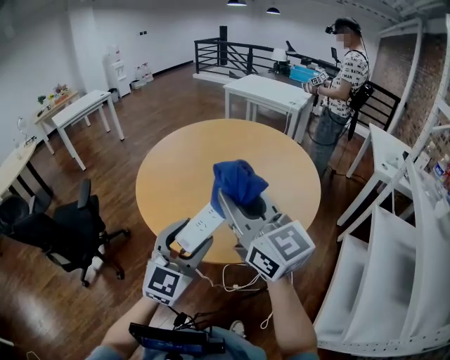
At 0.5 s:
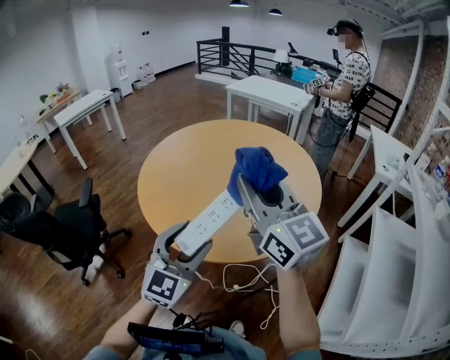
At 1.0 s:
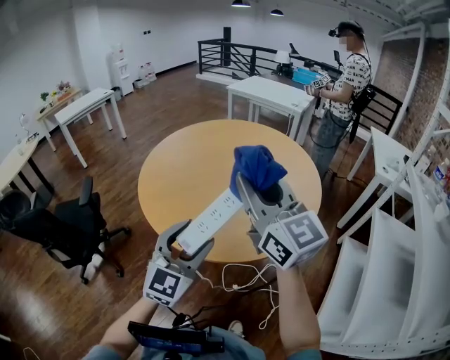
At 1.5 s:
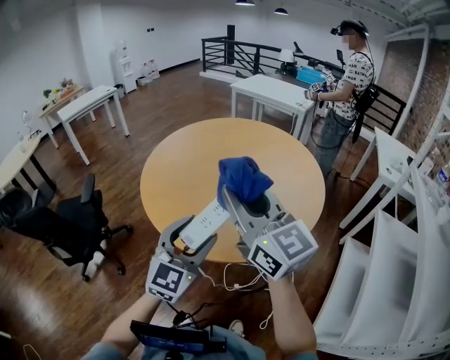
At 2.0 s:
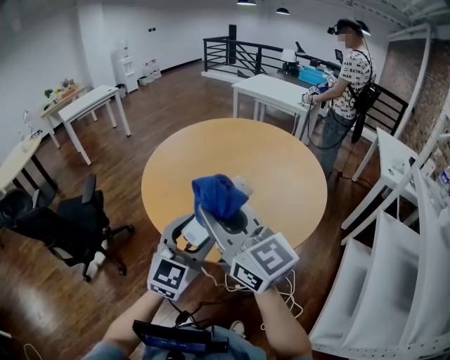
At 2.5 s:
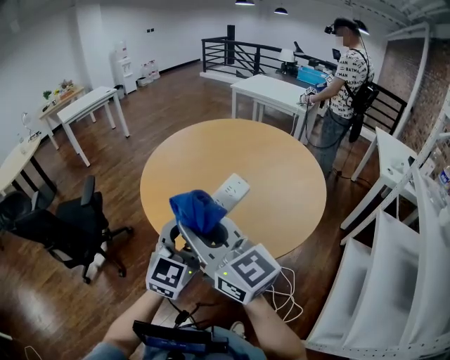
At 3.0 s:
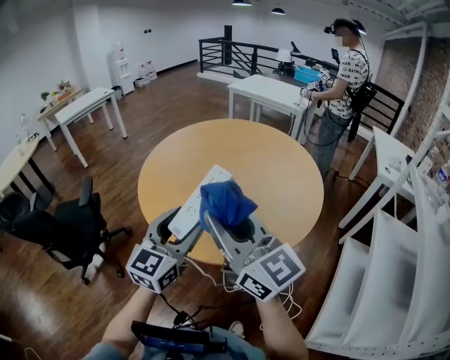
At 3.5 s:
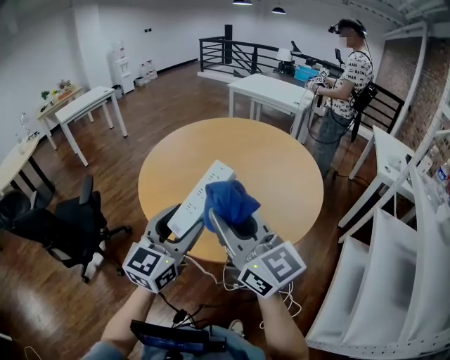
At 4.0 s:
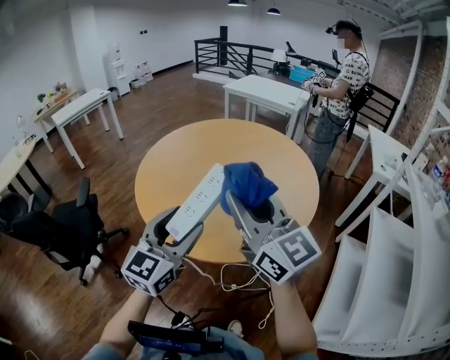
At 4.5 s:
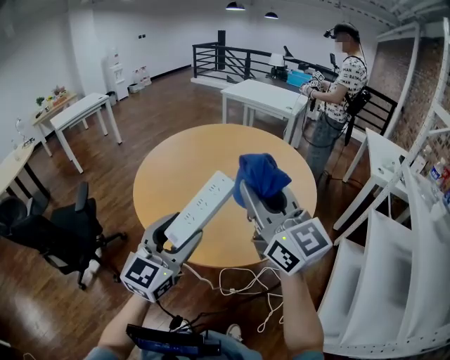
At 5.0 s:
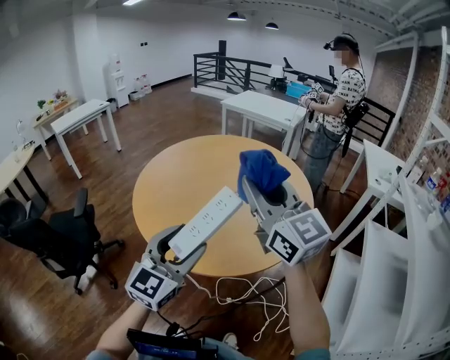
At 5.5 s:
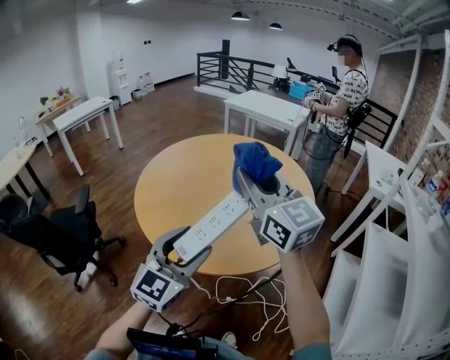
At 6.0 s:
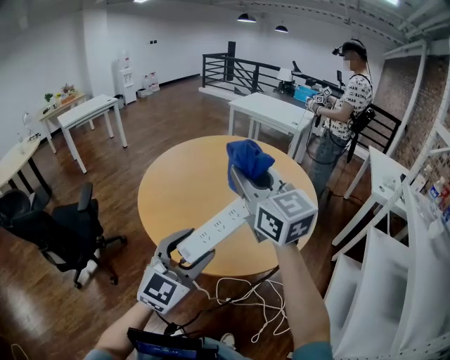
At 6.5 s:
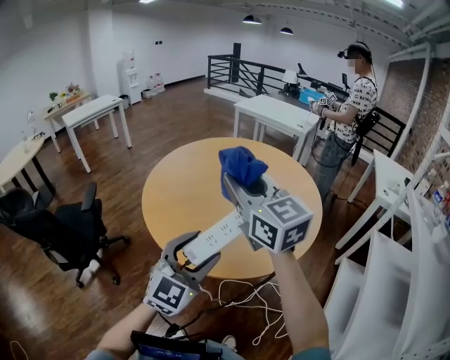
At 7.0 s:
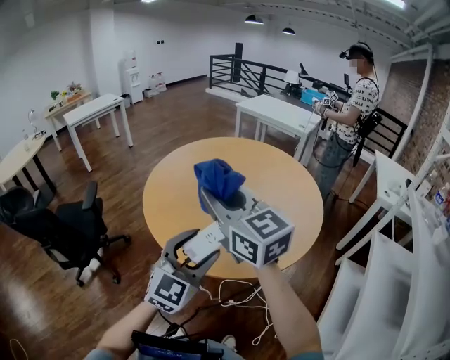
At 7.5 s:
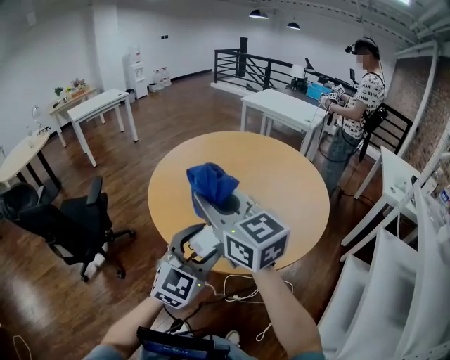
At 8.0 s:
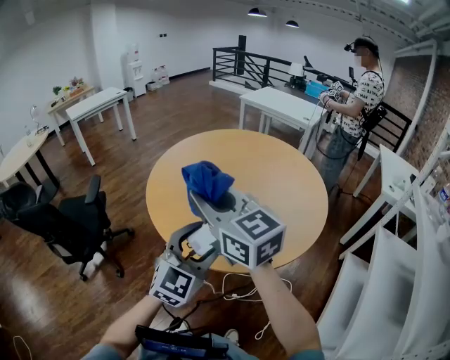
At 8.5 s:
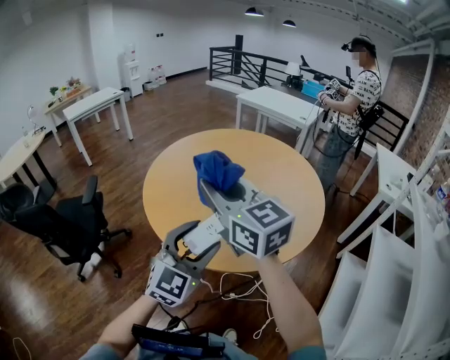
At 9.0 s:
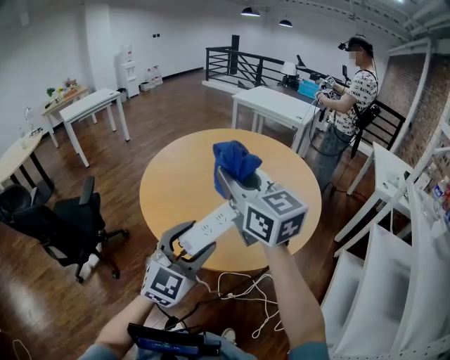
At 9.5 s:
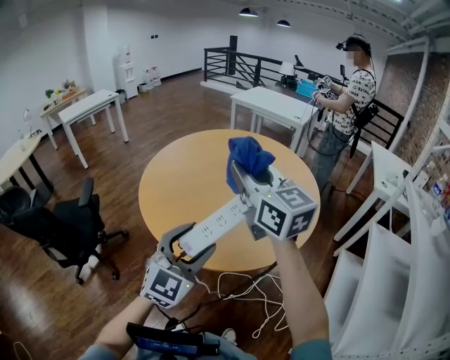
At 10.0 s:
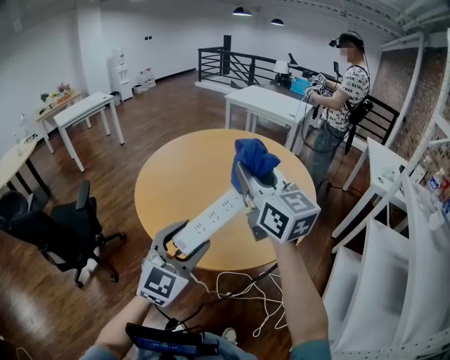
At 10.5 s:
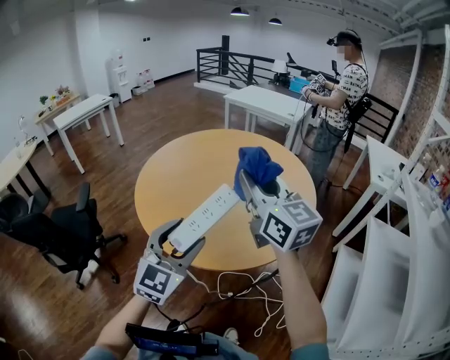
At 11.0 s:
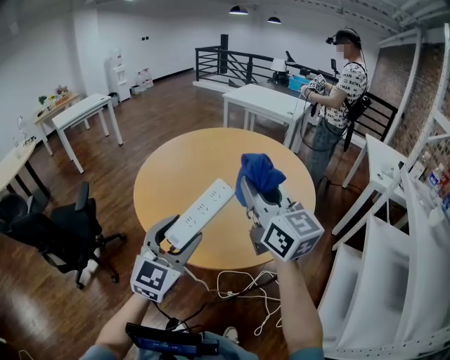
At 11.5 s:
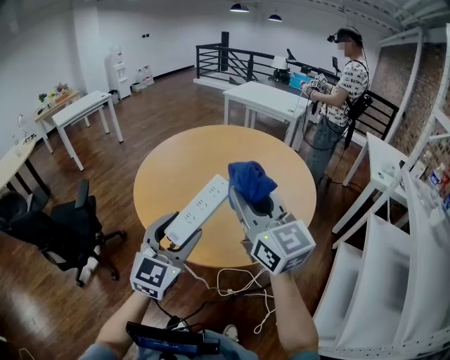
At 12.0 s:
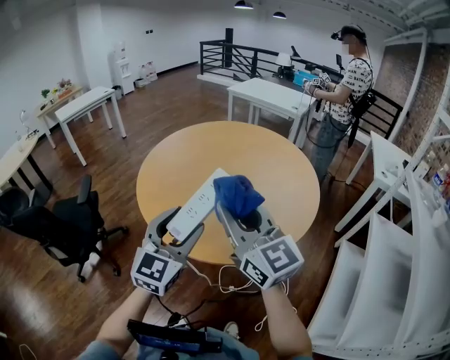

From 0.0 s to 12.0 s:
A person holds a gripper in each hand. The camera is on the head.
From 0.0 s to 2.0 s: The right gripper is displaced to the left by roughly 5 cm.
From 2.0 s to 4.0 s: The right gripper shifts about 5 cm to the right.
From 4.0 s to 6.0 s: The right gripper travels forward by some 10 cm.
From 6.0 s to 8.0 s: The right gripper goes approximately 10 cm to the left.
From 8.0 s to 10.0 s: The right gripper is displaced to the right by roughly 15 cm.
From 10.0 s to 12.0 s: The right gripper heads backward and downward, covering about 10 cm.

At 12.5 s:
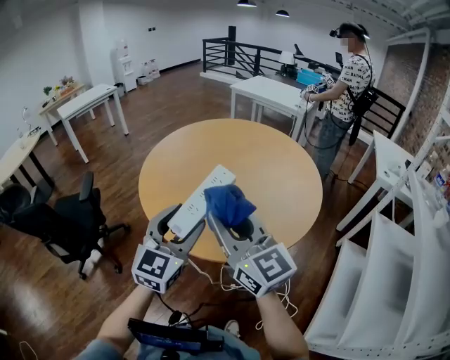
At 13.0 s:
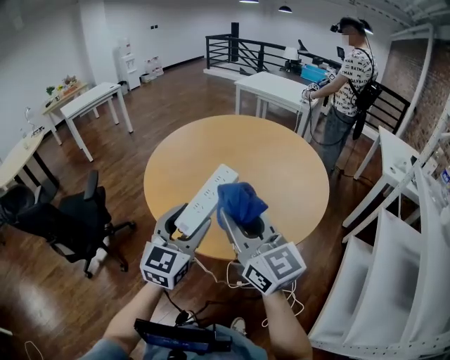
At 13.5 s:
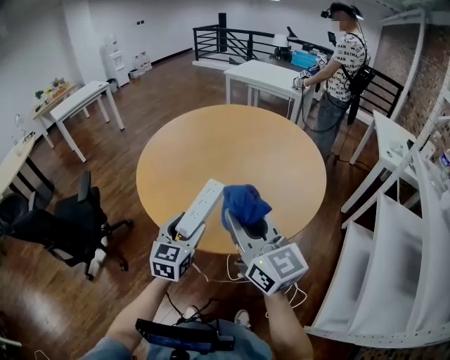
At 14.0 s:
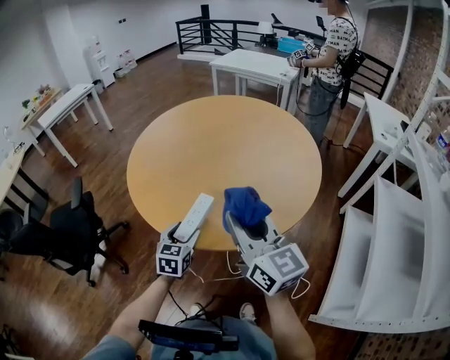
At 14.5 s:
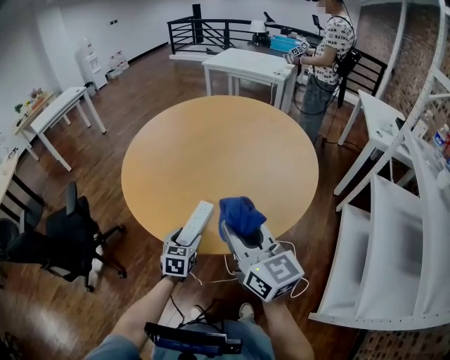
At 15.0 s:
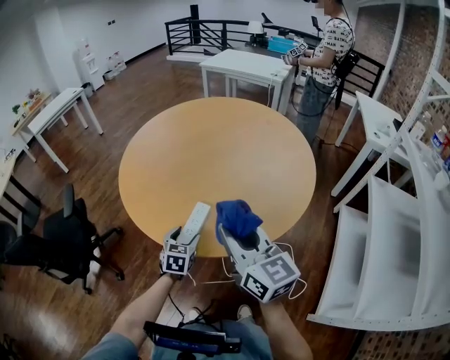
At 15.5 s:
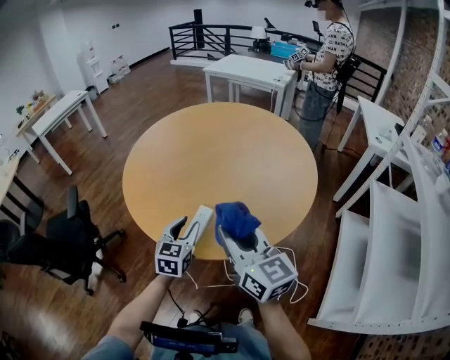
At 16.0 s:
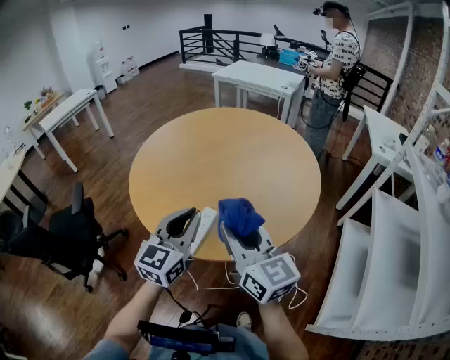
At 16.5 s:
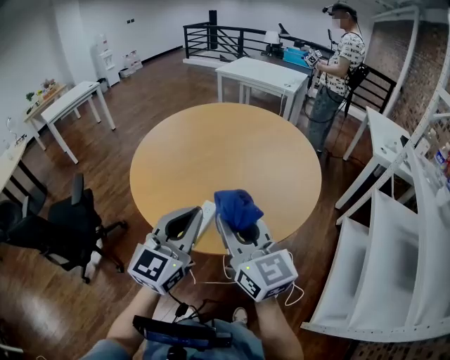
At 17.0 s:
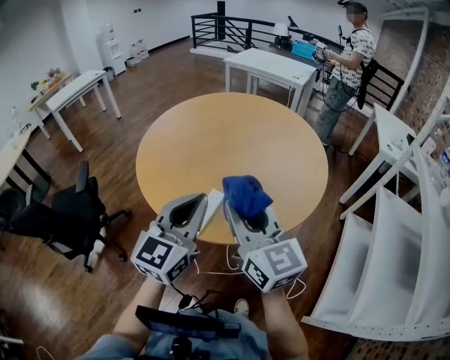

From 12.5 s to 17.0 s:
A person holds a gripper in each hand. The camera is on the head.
From 12.5 s to 14.5 s: The left gripper moves downward, about 30 cm, and angles its fingers downward, by about 30 degrees; the right gripper heads downward, covering approximately 10 cm, and changes its angle by approximately 20 degrees.
From 14.5 s to 17.0 s: The left gripper moves upward, roughly 30 cm, angles its fingers upward, by some 40 degrees, and closes up; the right gripper goes approximately 5 cm upward.

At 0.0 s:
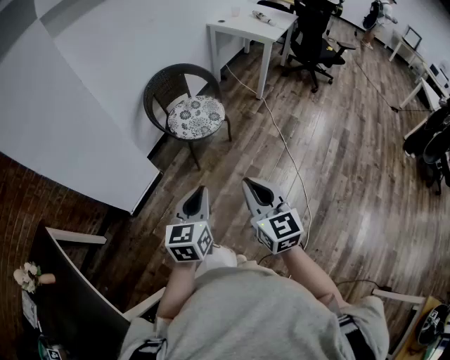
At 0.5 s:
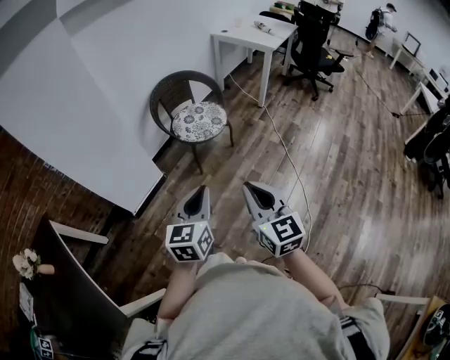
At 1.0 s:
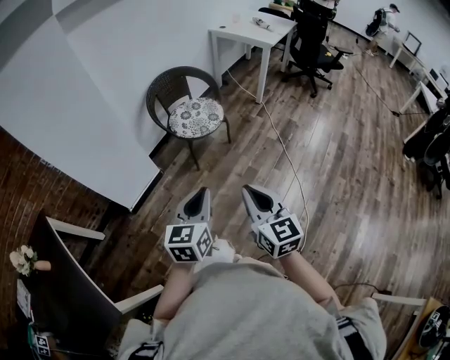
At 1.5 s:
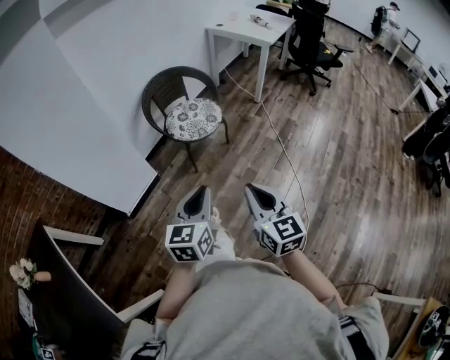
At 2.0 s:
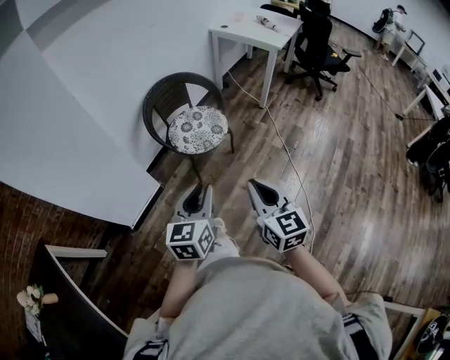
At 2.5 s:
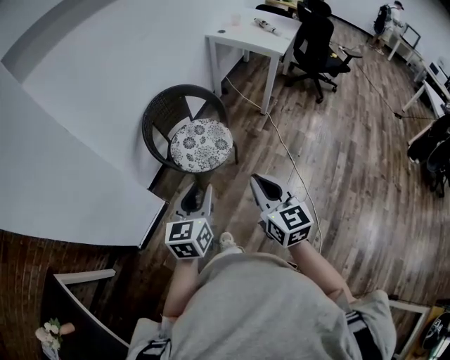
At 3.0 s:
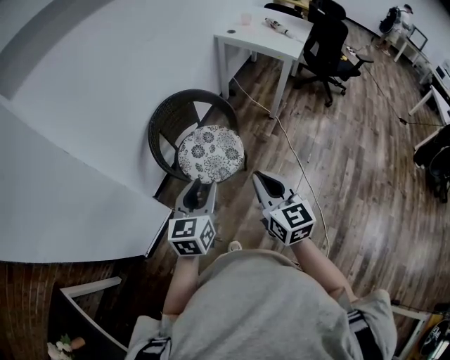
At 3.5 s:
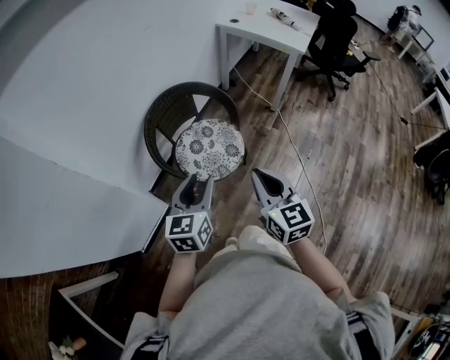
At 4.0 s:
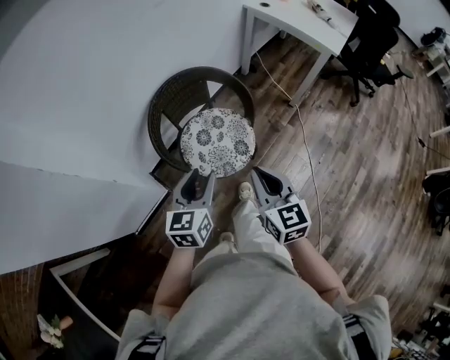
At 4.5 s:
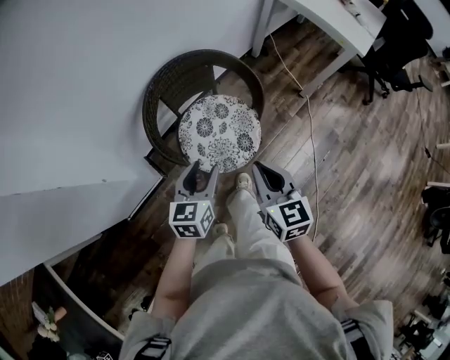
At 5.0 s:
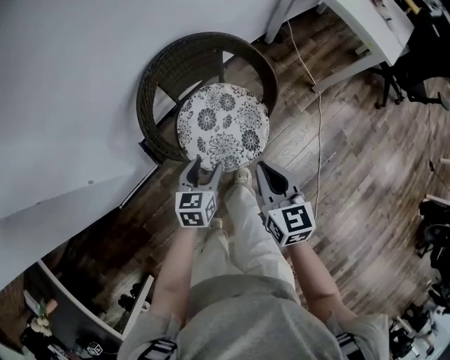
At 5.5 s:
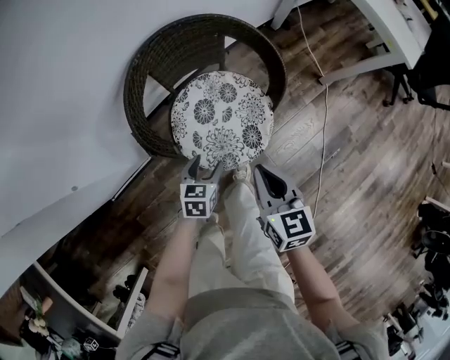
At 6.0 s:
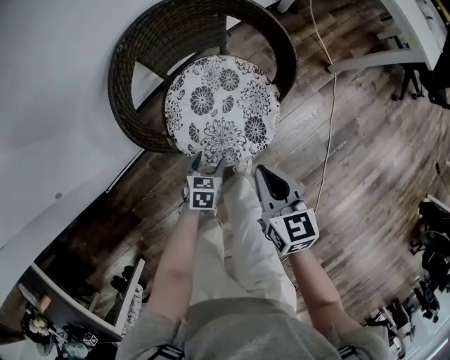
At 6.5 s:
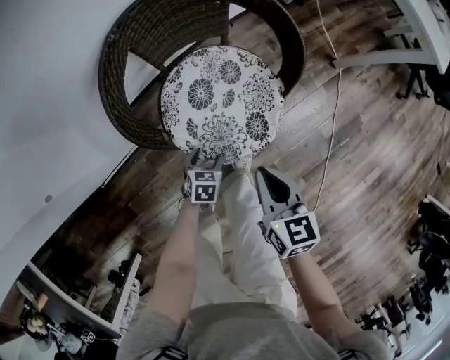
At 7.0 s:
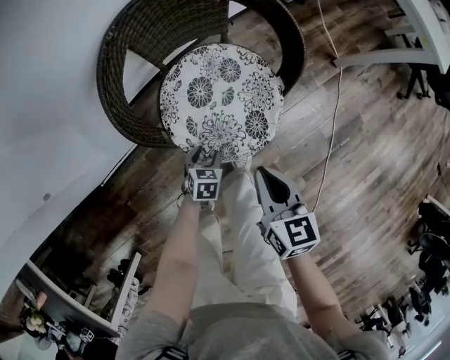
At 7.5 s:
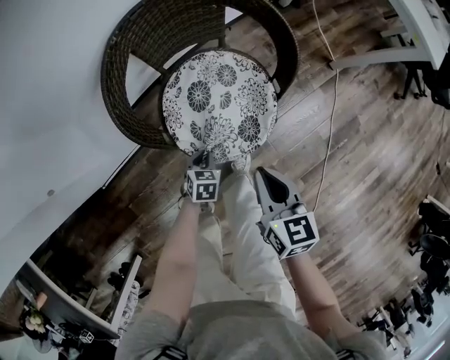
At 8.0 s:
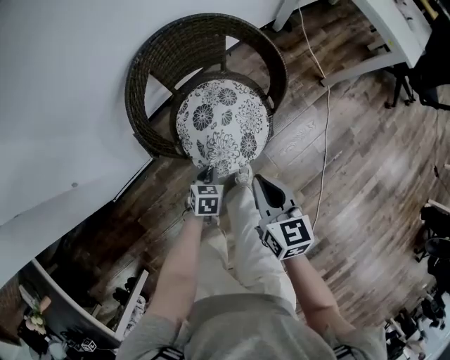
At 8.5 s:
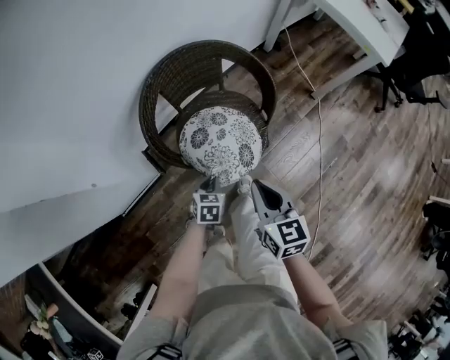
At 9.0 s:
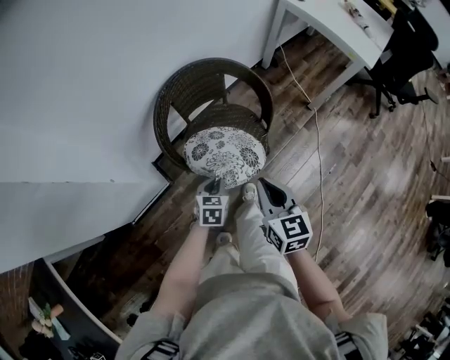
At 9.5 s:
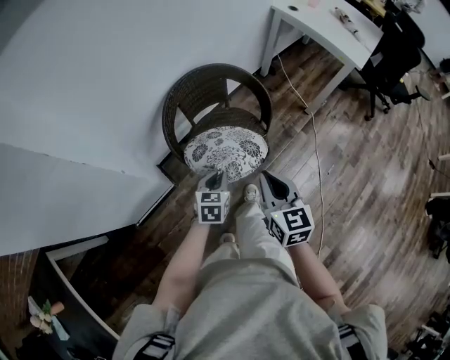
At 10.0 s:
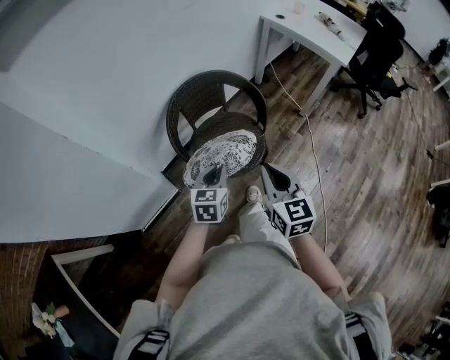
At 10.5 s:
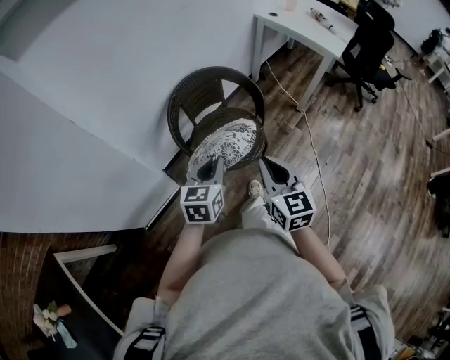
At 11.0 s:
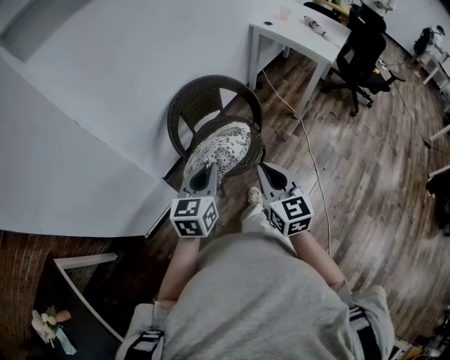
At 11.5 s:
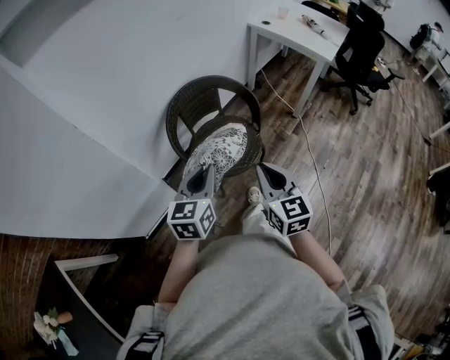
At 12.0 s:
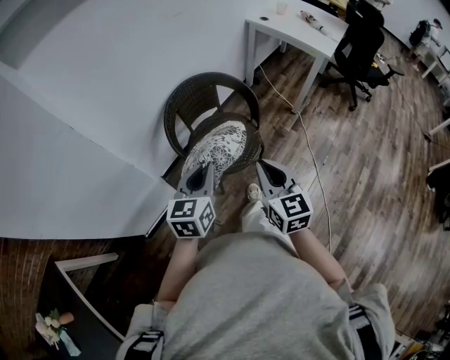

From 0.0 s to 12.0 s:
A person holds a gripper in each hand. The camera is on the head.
From 0.0 s to 2.0 s: The two grippers go approximately 10 cm forward.
From 2.0 s to 4.0 s: The grippers both shift forward by about 40 cm.
From 4.0 s to 6.0 s: The right gripper shifts roughly 30 cm downward and forward, and turns by approximately 20 degrees; the left gripper shifts roughly 50 cm downward, tilts its fingers some 40 degrees downward, and opens up.
From 6.0 s to 8.0 s: The right gripper shifts by about 5 cm; the left gripper closes its fingers.
From 8.0 s to 10.0 s: The right gripper shifts about 25 cm upward and backward, and swivels some 20 degrees. Meanwhile the left gripper moves upward, about 35 cm, and points its fingers approximately 30 degrees further upward.
From 10.0 s to 12.0 s: The right gripper heads backward, covering about 5 cm, while the left gripper heads upward and backward, covering some 15 cm.
